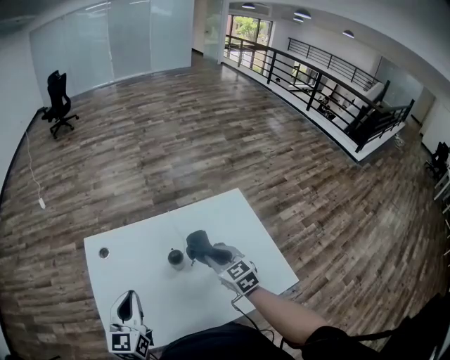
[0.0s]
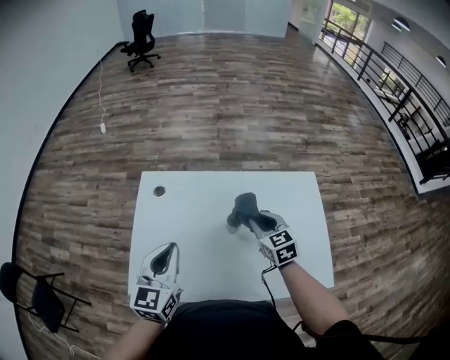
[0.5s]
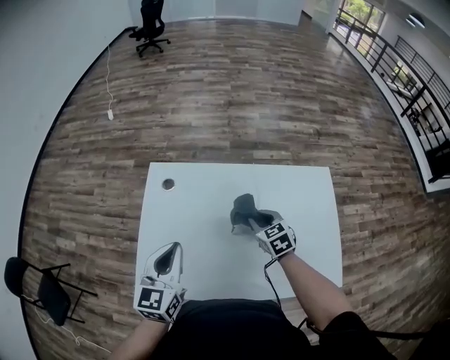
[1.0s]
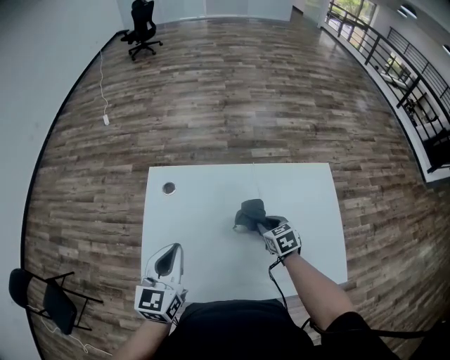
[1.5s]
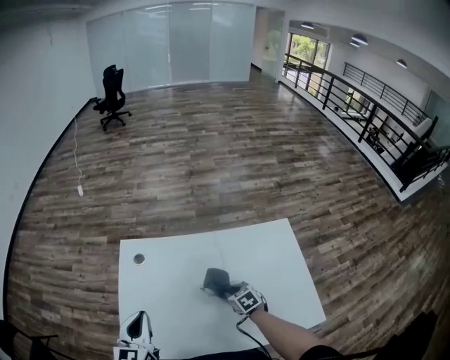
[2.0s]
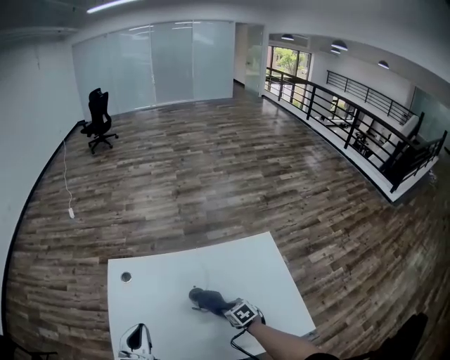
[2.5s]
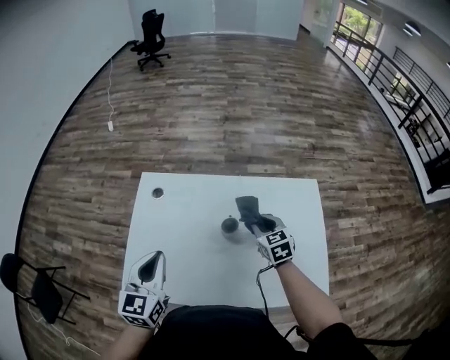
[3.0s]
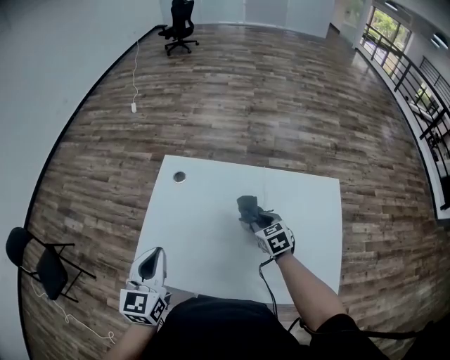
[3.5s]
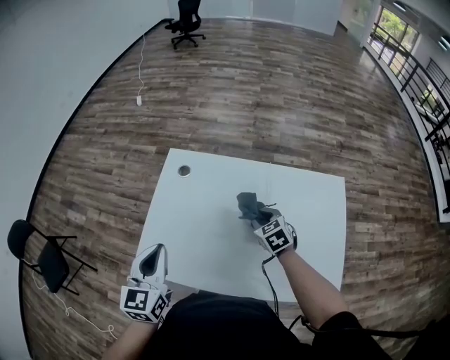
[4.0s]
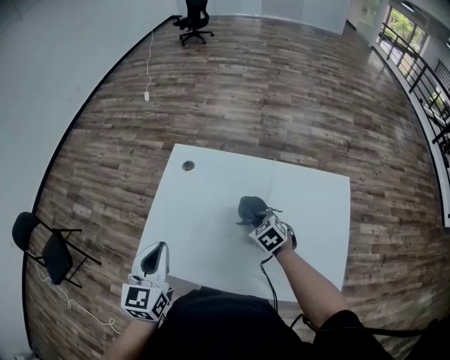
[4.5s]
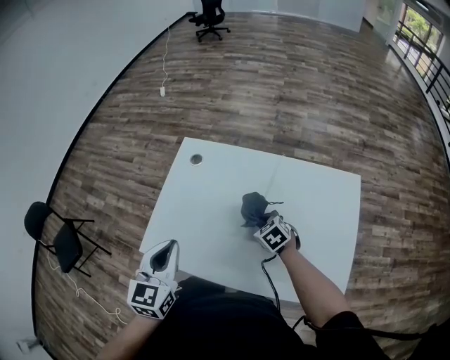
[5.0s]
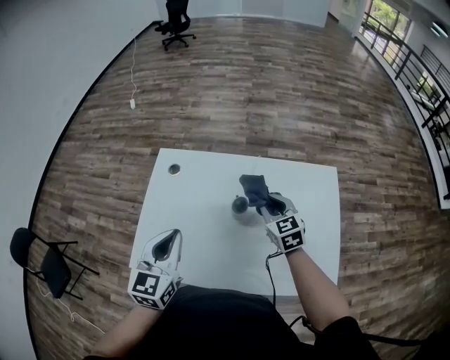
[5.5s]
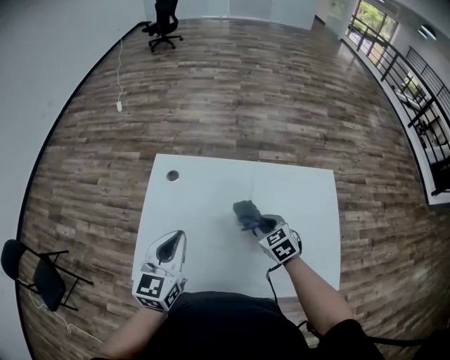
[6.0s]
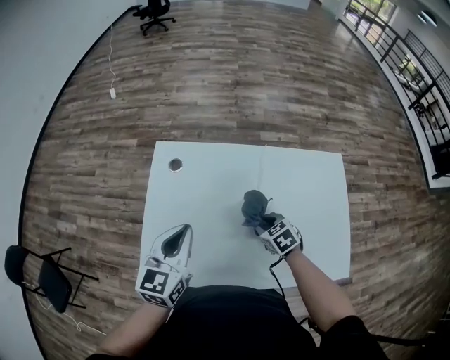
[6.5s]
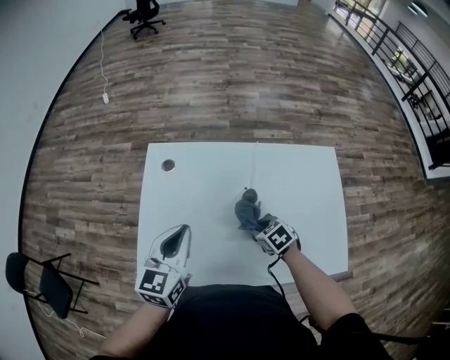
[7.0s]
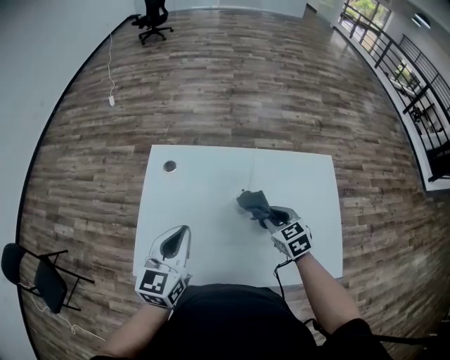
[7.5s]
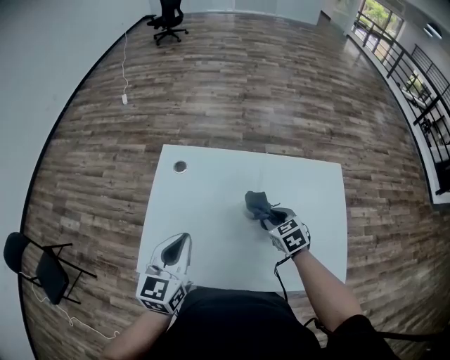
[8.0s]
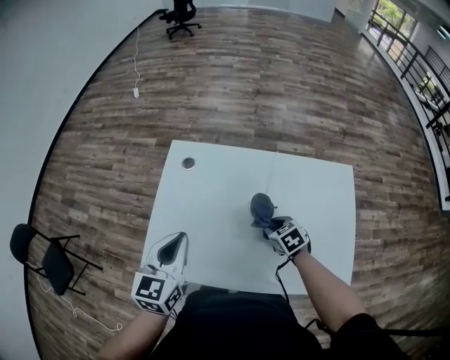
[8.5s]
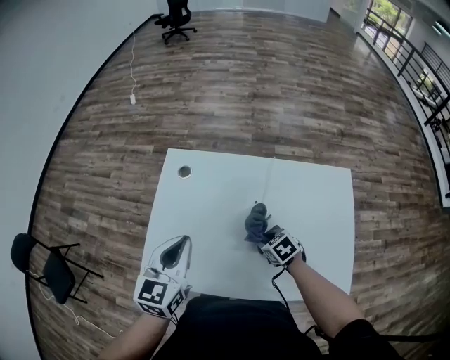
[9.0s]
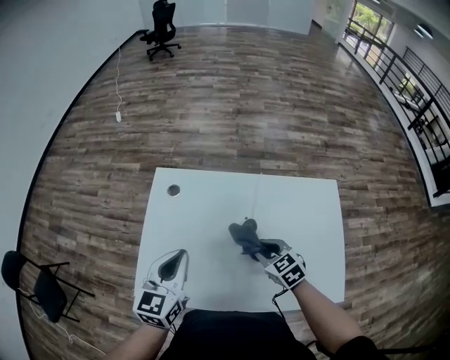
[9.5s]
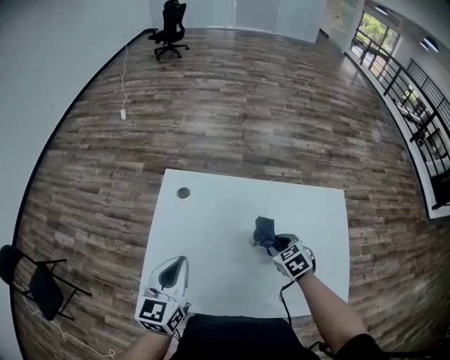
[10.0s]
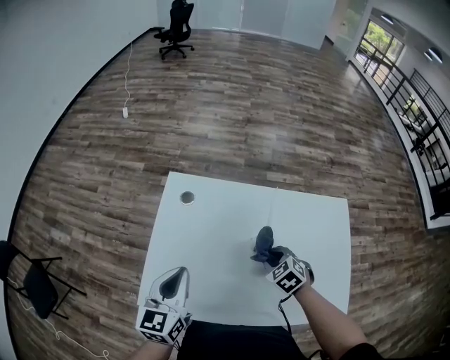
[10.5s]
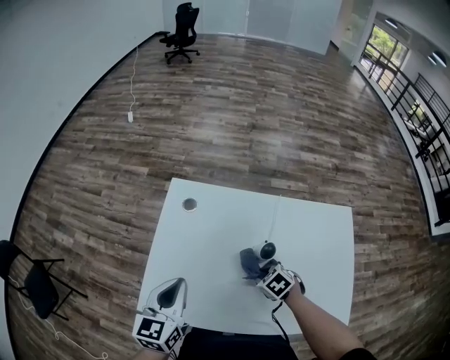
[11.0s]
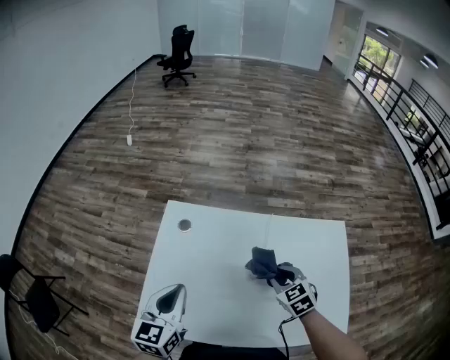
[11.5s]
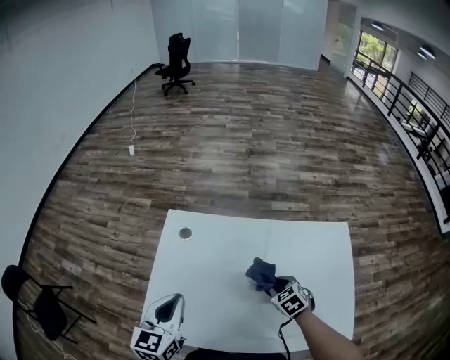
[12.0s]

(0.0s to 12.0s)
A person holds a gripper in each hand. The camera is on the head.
0.0s - 2.0s: The left gripper is displaced to the left by some 5 cm; the right gripper goes roughly 20 cm downward, and rotates approximately 30 degrees.
2.0s - 4.0s: The left gripper heads backward, covering approximately 5 cm, while the right gripper travels upward by roughly 10 cm, and changes its angle by some 20 degrees.
4.0s - 6.0s: The left gripper travels to the right by about 5 cm; the right gripper swings up and down, approximately 15 cm each way, with 2 reversals.
6.0s - 8.0s: The right gripper reaches approximately 5 cm downward, then returns.
8.0s - 10.0s: The right gripper moves some 10 cm downward and comes back.
10.0s - 12.0s: The right gripper swings up and down, roughly 10 cm each way, with 2 reversals.

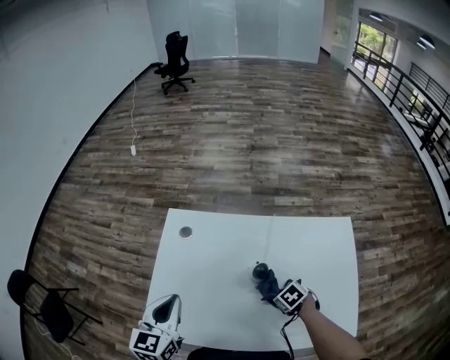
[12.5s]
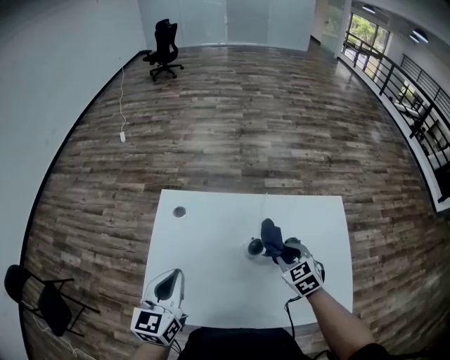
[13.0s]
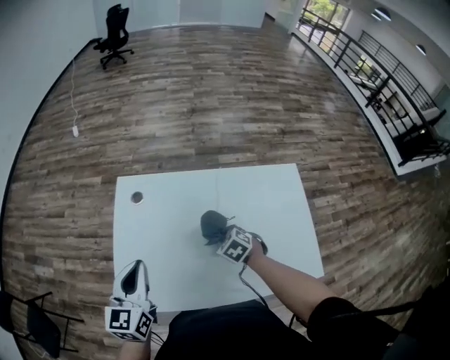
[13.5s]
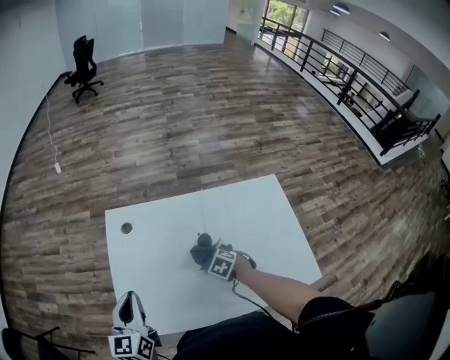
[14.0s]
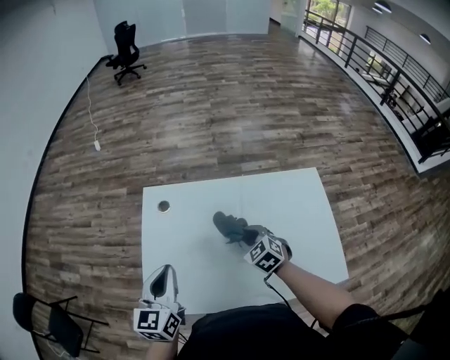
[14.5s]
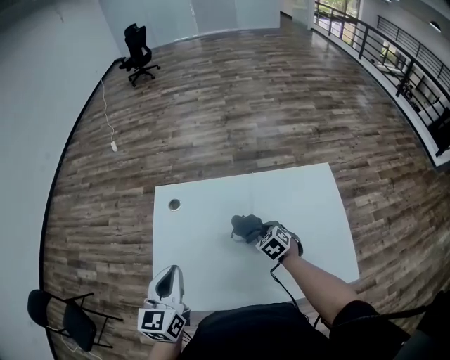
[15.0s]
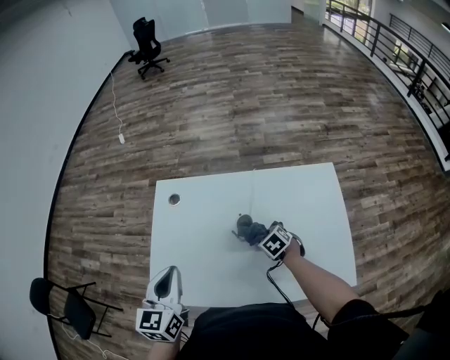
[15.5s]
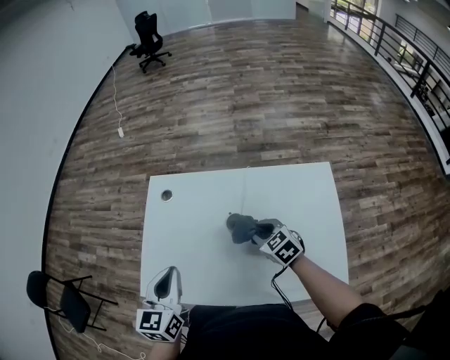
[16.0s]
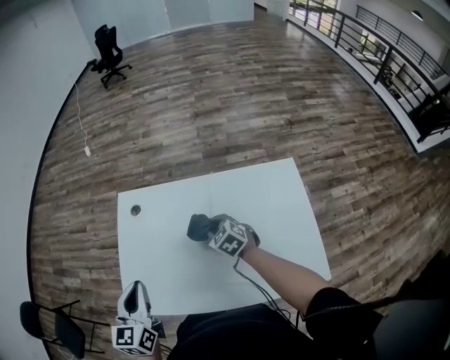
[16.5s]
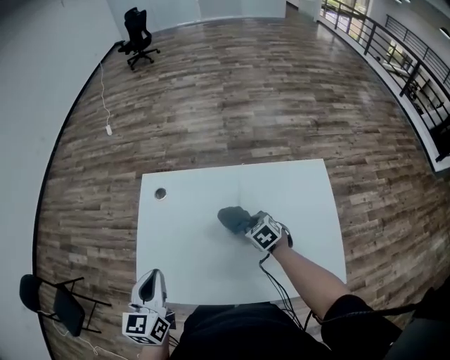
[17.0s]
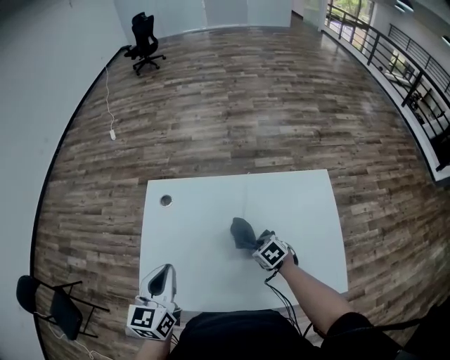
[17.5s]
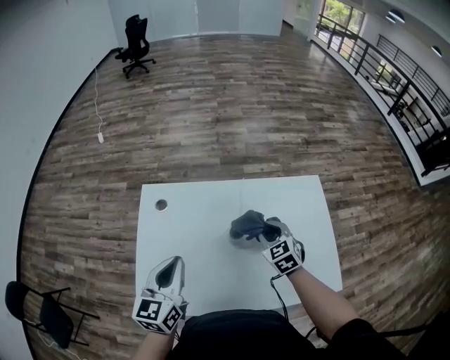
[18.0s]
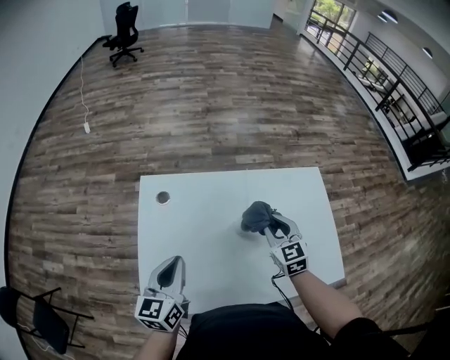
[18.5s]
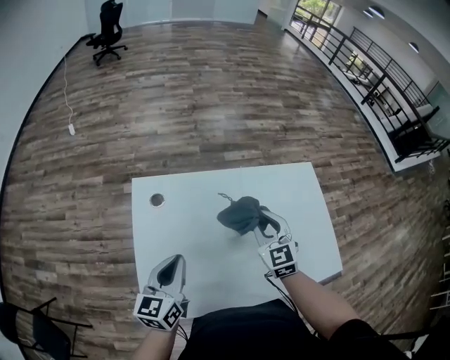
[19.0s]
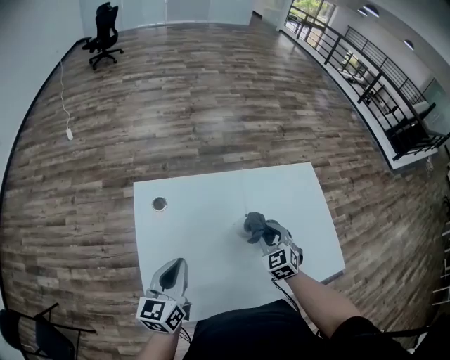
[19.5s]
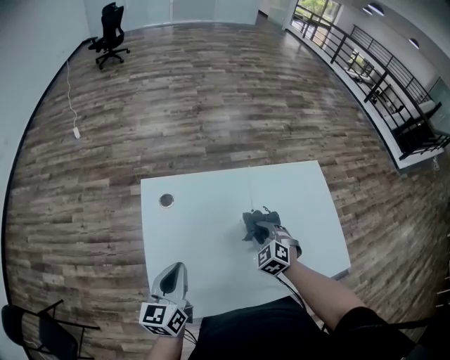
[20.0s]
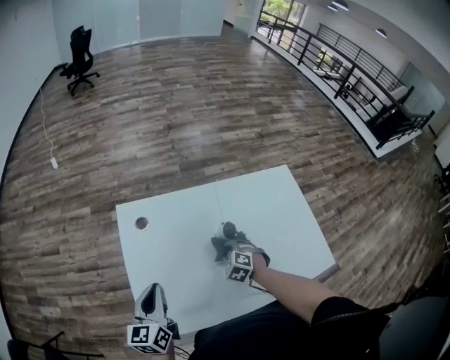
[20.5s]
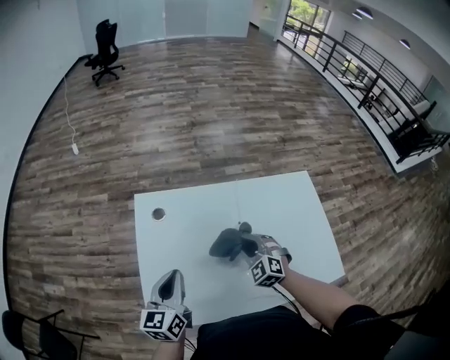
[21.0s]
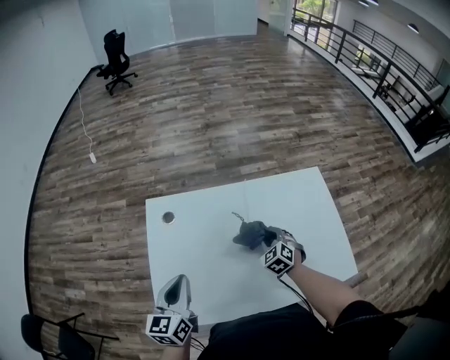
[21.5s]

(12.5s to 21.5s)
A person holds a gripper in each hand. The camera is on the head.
12.5s - 14.5s: The right gripper goes up and down, approximately 15 cm each way, reversing 2 times, and swivels roughly 40 degrees.
14.5s - 17.0s: The right gripper moves up and down over some 10 cm, changing direction 2 times.
17.0s - 19.5s: The left gripper moves approximately 10 cm, and changes its angle by roughly 30 degrees. The right gripper travels upward by approximately 10 cm, and turns by approximately 30 degrees.
19.5s - 21.5s: The right gripper moves up and down over approximately 10 cm, changing direction 2 times.

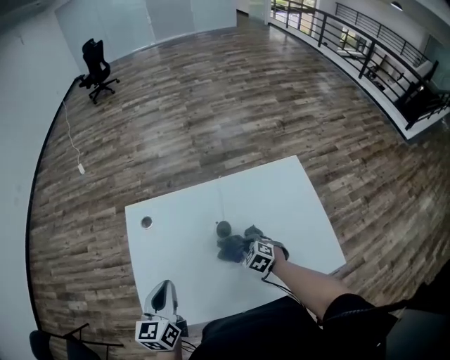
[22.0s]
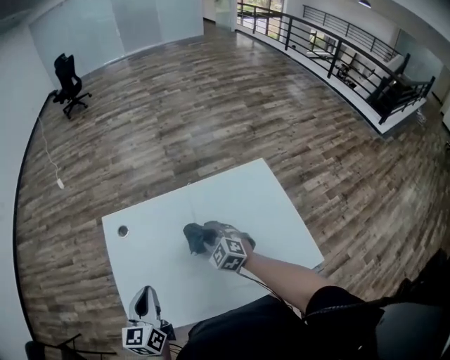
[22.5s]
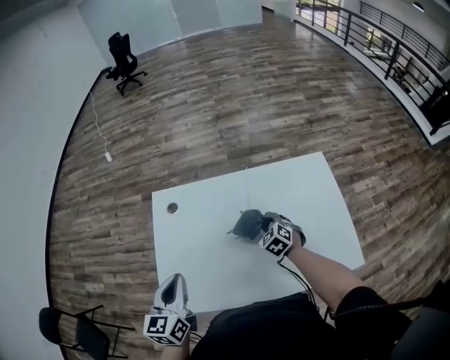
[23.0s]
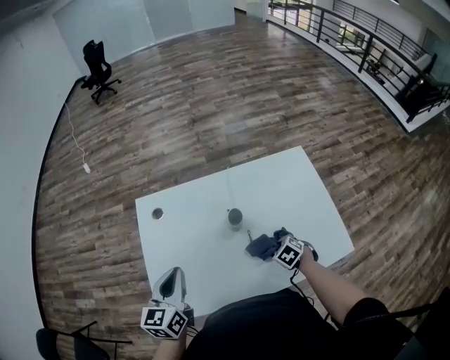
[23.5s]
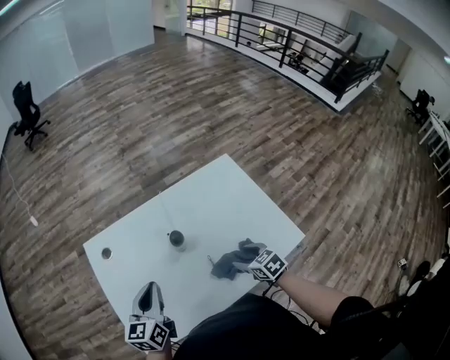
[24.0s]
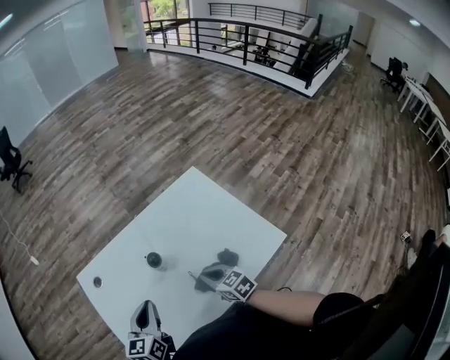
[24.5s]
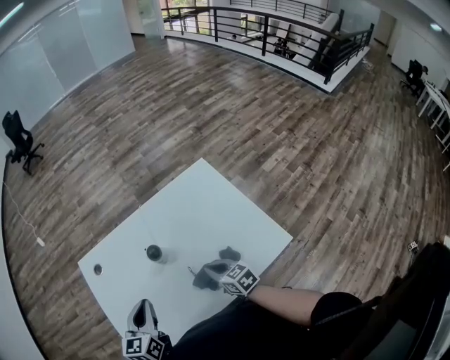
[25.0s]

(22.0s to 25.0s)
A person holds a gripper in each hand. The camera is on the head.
22.0s - 23.5s: The right gripper is displaced backward and to the right by approximately 10 cm.
23.5s - 25.0s: The right gripper is displaced upward by about 5 cm, points its fingers about 40 degrees further upward, and closes its fingers. The left gripper travels to the right by roughly 10 cm.

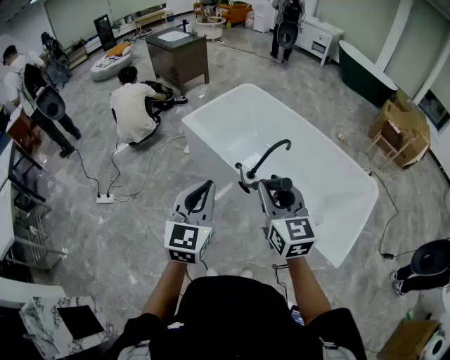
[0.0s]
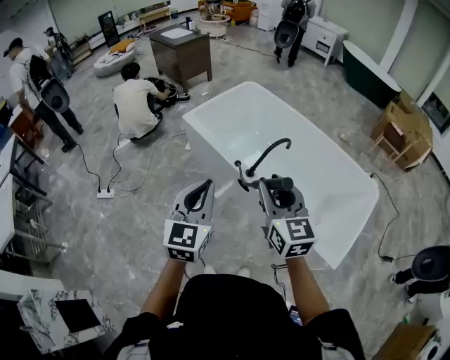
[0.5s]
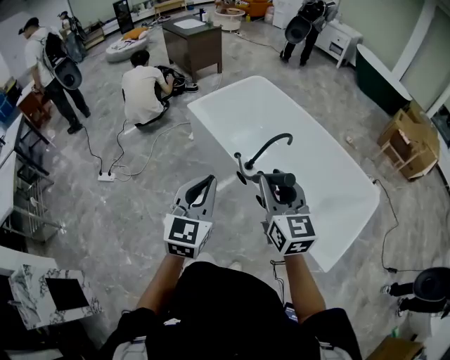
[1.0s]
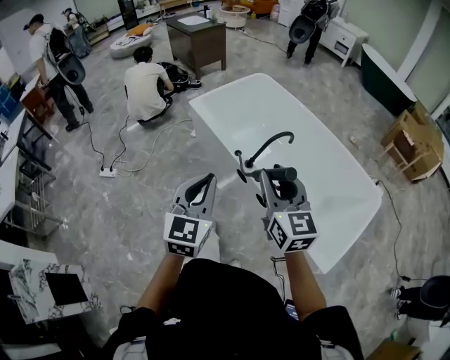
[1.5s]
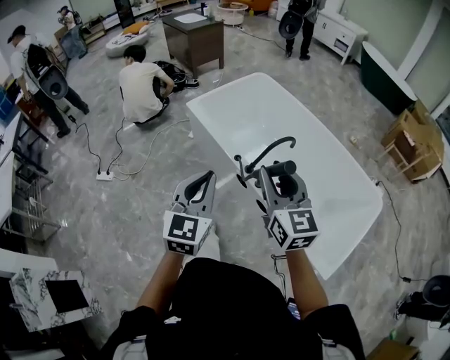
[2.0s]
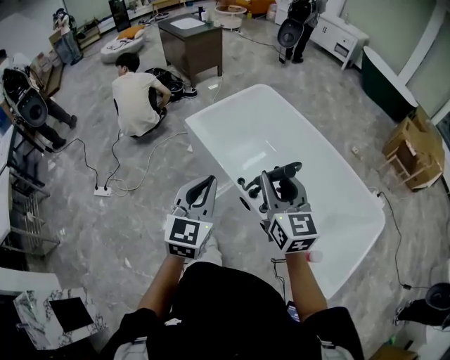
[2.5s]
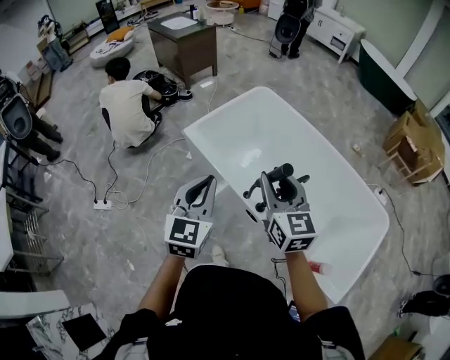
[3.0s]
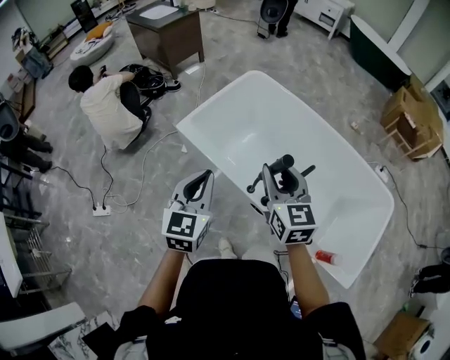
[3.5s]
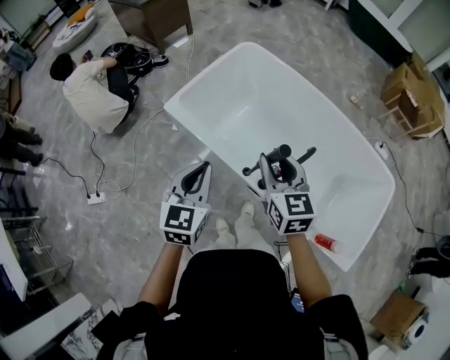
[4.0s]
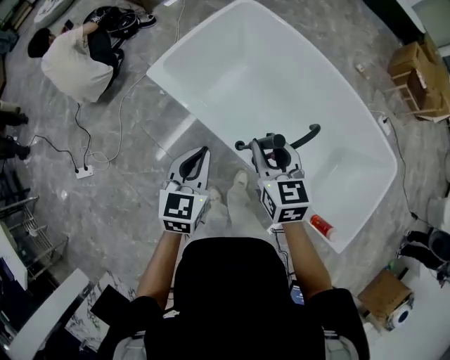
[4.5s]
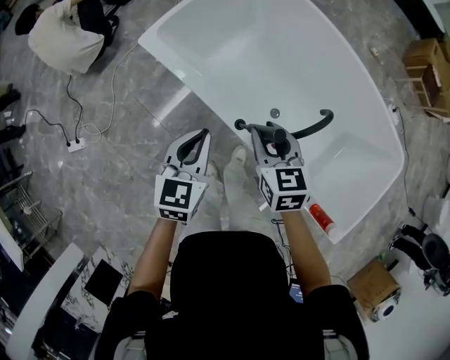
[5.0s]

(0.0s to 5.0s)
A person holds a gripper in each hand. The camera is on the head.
0.0s - 2.5s: The two grippers go about 20 cm forward.
2.5s - 5.0s: The grippers both shift downward and forward by approximately 40 cm. The right gripper tilts its fingers approximately 30 degrees downward; the left gripper rotates roughly 30 degrees.
